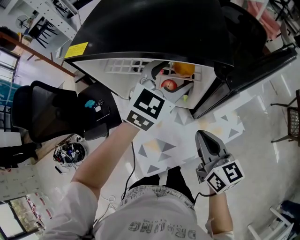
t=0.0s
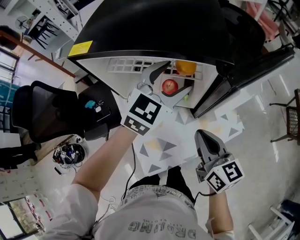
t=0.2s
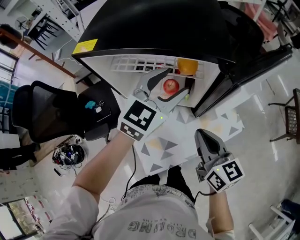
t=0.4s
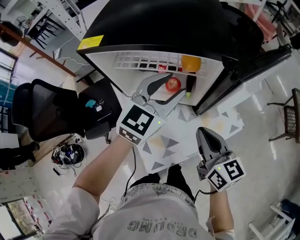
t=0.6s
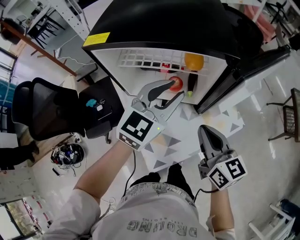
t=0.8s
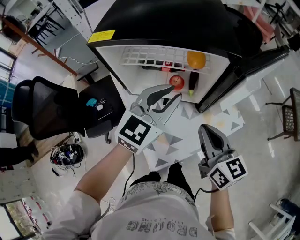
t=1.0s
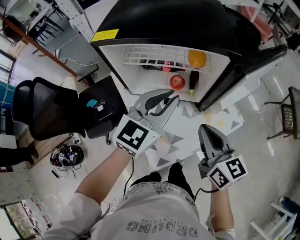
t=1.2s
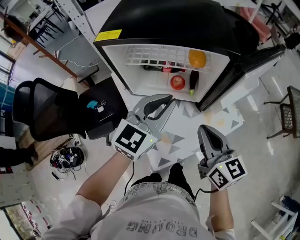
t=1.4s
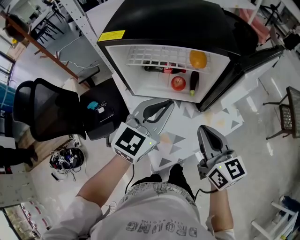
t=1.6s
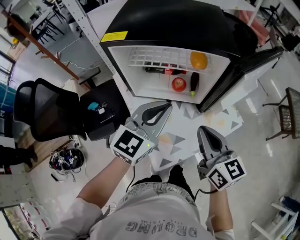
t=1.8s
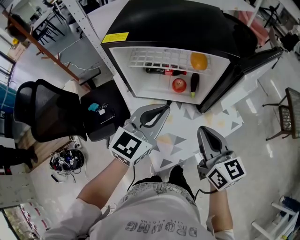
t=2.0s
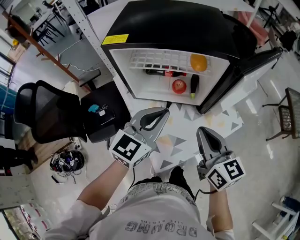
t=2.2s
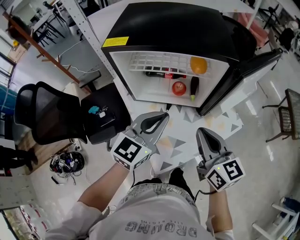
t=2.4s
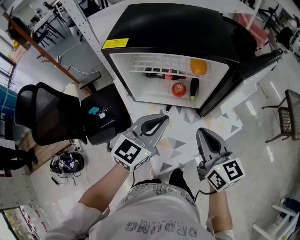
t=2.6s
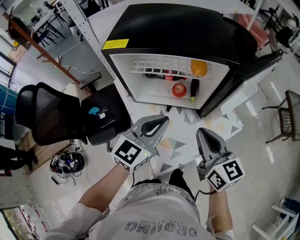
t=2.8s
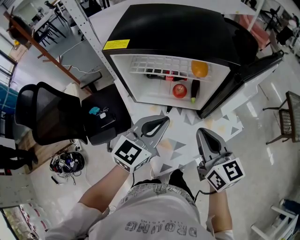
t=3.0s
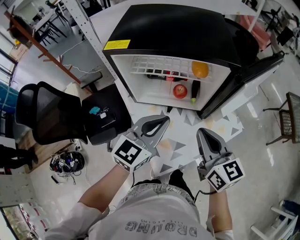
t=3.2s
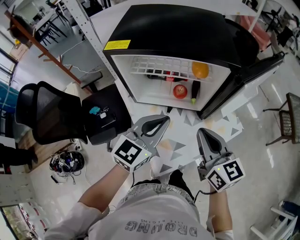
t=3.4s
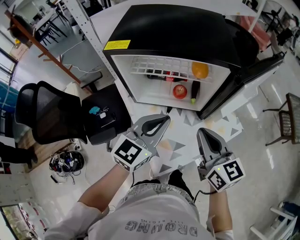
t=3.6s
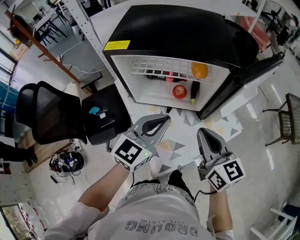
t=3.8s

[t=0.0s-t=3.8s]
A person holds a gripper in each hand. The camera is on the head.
t=0.0s to t=1.2s: The right gripper changes place by about 10 cm; the left gripper is displaced backward and to the left by about 15 cm, and closes up.
t=1.2s to t=2.6s: The left gripper shifts roughly 5 cm backward.
t=2.6s to t=3.8s: Both grippers stay about where they are.

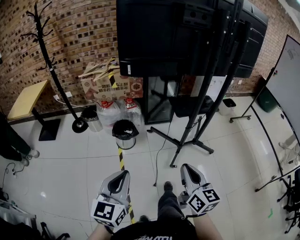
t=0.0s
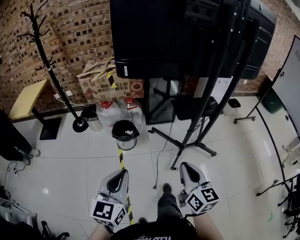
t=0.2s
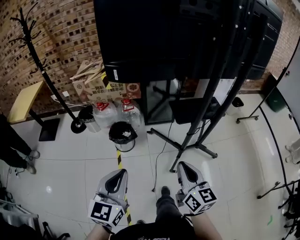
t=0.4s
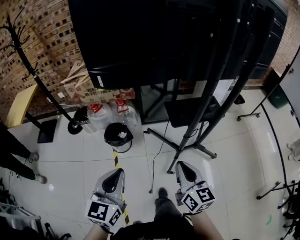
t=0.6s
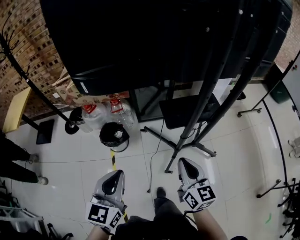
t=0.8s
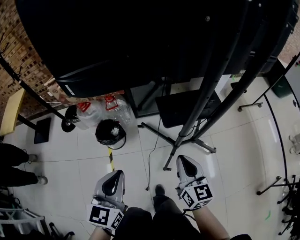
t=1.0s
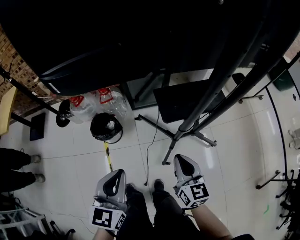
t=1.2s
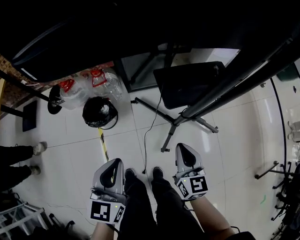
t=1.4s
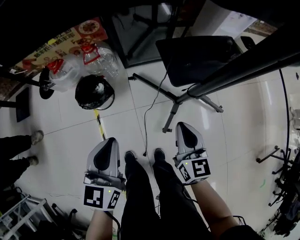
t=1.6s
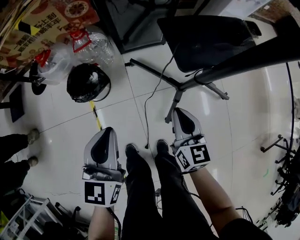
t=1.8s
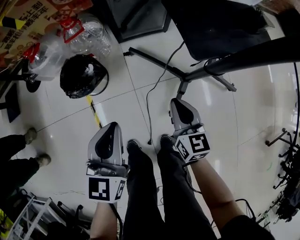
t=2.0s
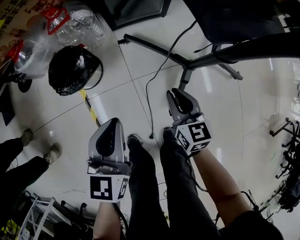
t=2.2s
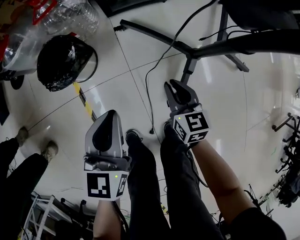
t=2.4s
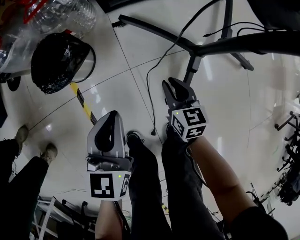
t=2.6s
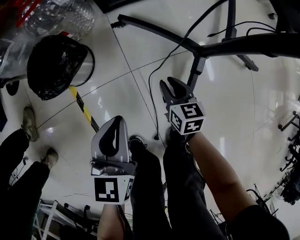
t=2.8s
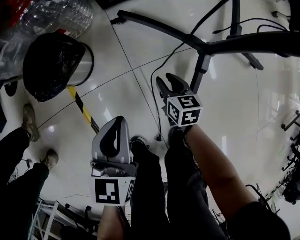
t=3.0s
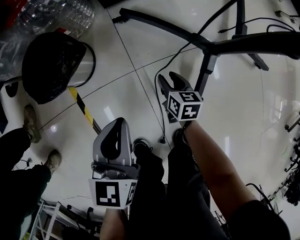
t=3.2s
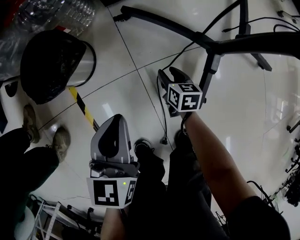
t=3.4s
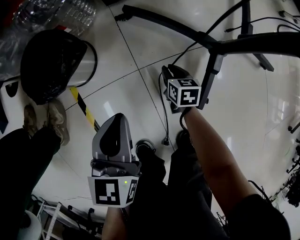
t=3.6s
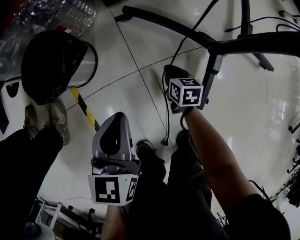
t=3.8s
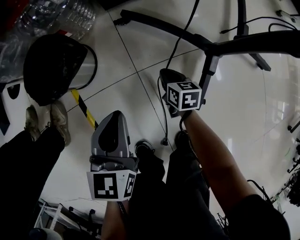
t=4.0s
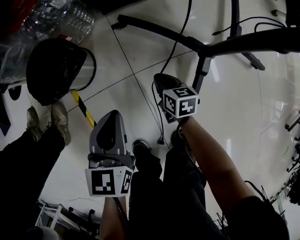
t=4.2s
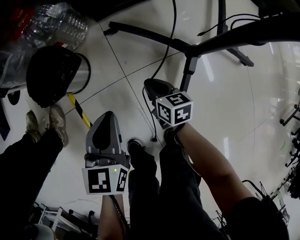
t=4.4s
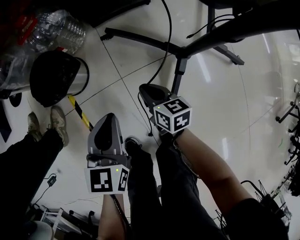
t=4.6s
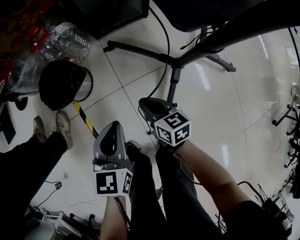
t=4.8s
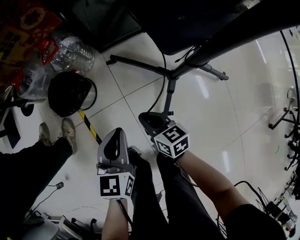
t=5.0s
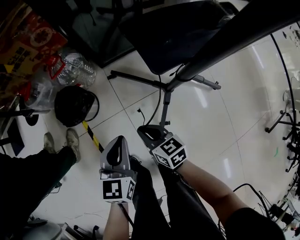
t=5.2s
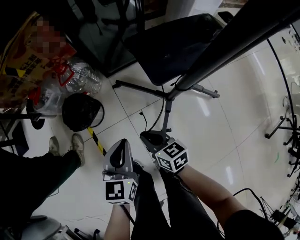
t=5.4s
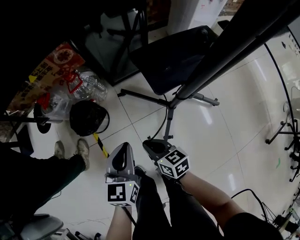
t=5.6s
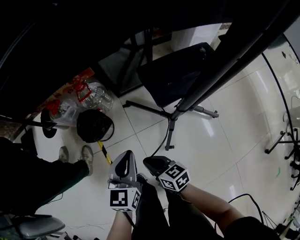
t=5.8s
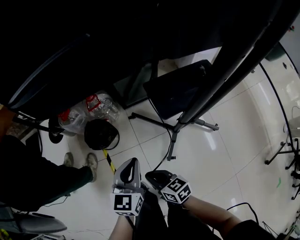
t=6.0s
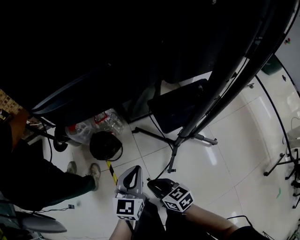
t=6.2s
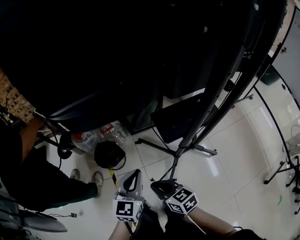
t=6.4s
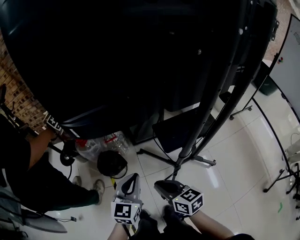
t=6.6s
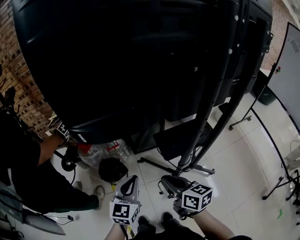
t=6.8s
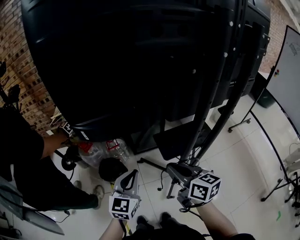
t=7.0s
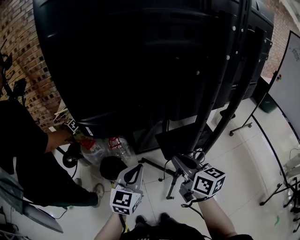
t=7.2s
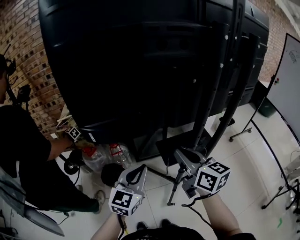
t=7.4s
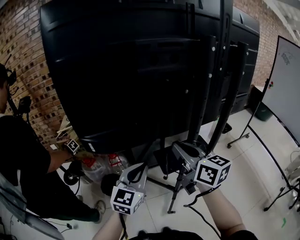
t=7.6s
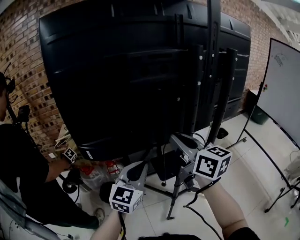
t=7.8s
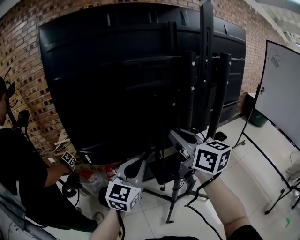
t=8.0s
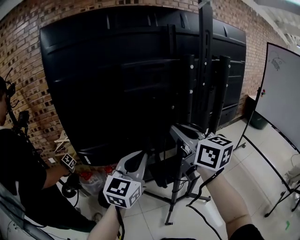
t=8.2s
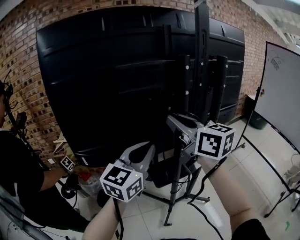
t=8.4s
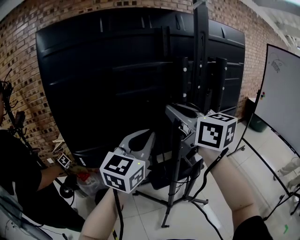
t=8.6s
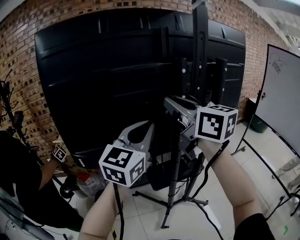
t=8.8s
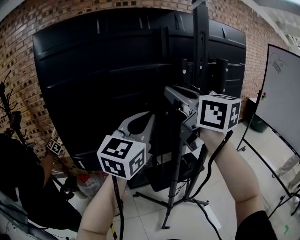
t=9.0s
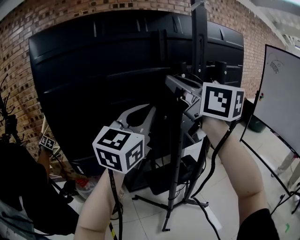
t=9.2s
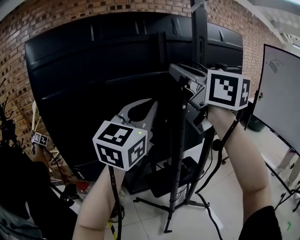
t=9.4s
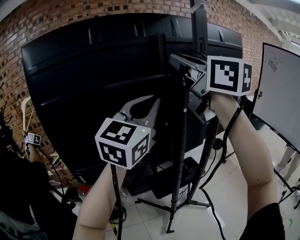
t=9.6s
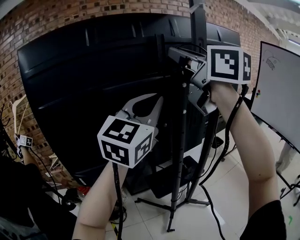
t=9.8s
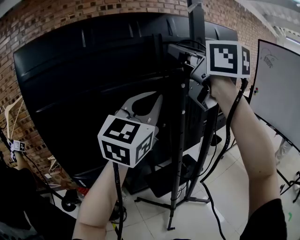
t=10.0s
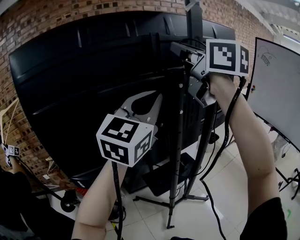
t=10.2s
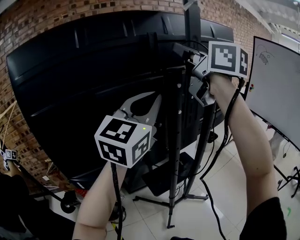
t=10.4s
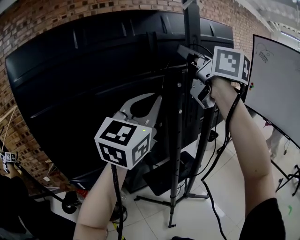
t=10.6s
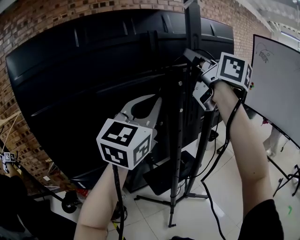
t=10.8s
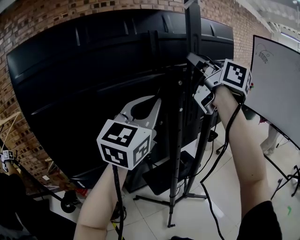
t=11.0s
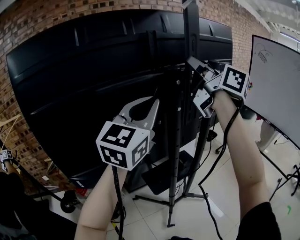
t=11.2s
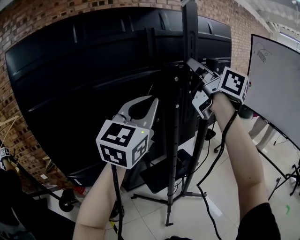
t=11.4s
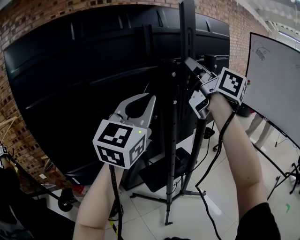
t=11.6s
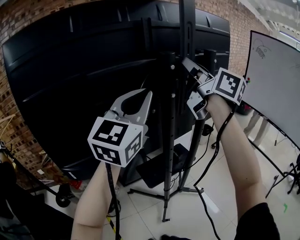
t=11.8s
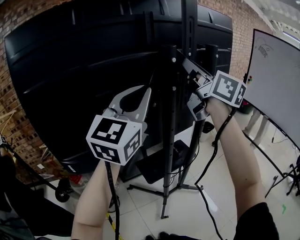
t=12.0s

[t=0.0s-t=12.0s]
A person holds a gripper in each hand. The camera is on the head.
t=0.0s to t=1.6s: Both grippers move forward and downward, about 40 cm.
t=1.6s to t=3.0s: The grippers both shift downward by some 40 cm. The right gripper swivels approximately 30 degrees, and opens.
t=3.0s to t=4.4s: The right gripper reaches about 10 cm downward, then returns, and closes its fingers.
t=4.4s to t=6.0s: Both grippers travel together upward, approximately 35 cm. The right gripper swivels approximately 20 degrees.
t=6.0s to t=7.6s: The left gripper travels upward by about 25 cm, and turns by some 30 degrees, while the right gripper goes approximately 50 cm upward, and turns by roughly 40 degrees.
t=7.6s to t=9.0s: The left gripper heads upward and to the right, covering some 30 cm; the right gripper shifts roughly 25 cm upward.
t=9.0s to t=10.4s: The left gripper moves upward, about 10 cm. The right gripper heads upward, forward and to the right, covering approximately 15 cm.
t=10.4s to t=12.0s: The right gripper shifts roughly 10 cm downward.

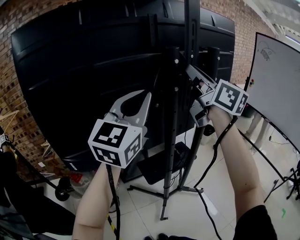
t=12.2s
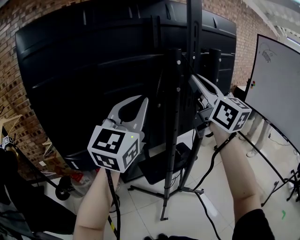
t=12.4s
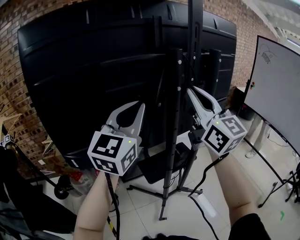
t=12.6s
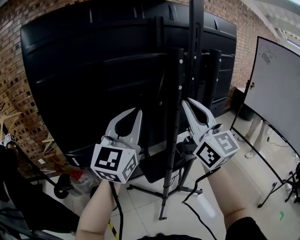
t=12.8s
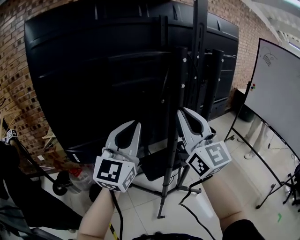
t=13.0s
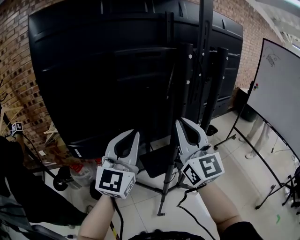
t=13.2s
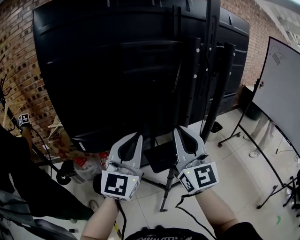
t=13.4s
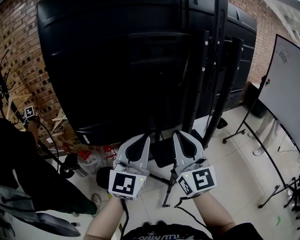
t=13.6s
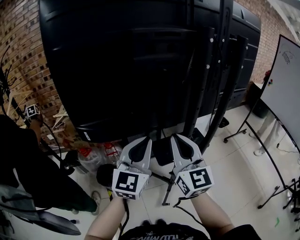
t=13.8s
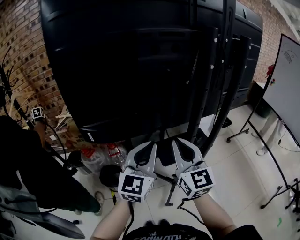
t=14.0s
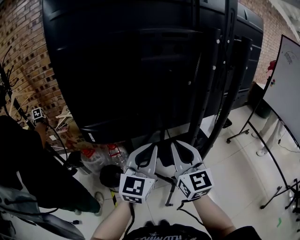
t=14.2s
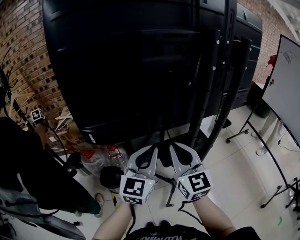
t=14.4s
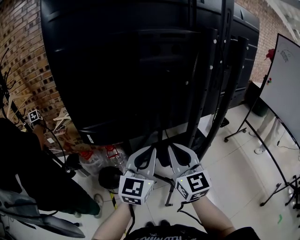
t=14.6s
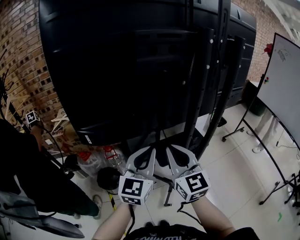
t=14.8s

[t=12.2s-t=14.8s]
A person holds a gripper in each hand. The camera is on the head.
t=12.2s to t=13.4s: The two grippers go some 20 cm downward, backward and to the left. The right gripper rotates some 30 degrees.
t=13.4s to t=14.8s: The left gripper travels downward by approximately 10 cm. Meanwhile the right gripper goes about 15 cm downward and to the left.

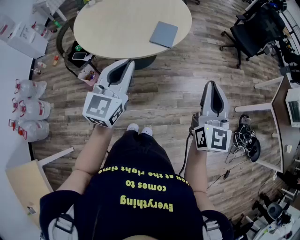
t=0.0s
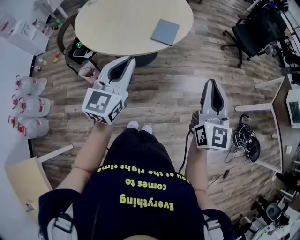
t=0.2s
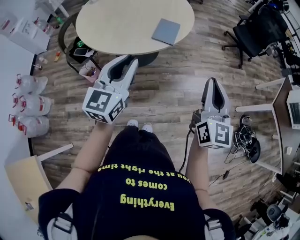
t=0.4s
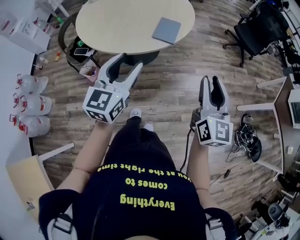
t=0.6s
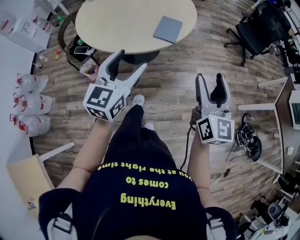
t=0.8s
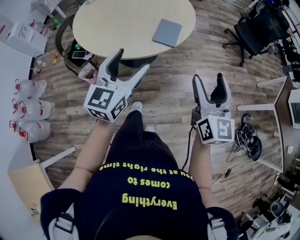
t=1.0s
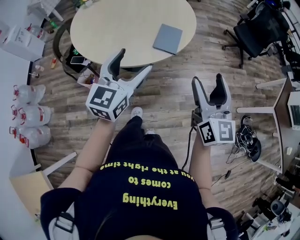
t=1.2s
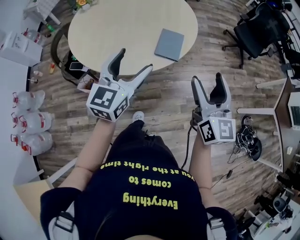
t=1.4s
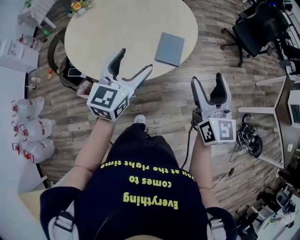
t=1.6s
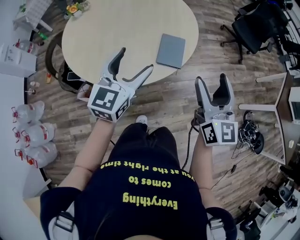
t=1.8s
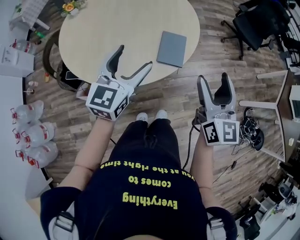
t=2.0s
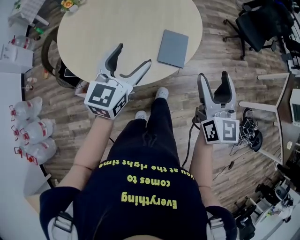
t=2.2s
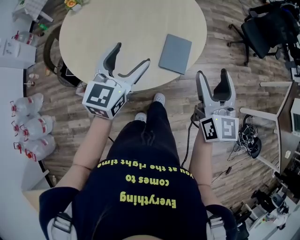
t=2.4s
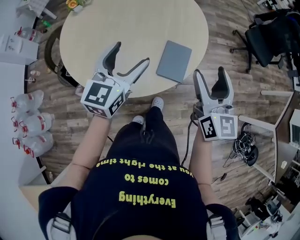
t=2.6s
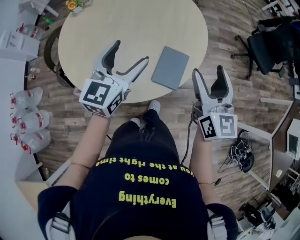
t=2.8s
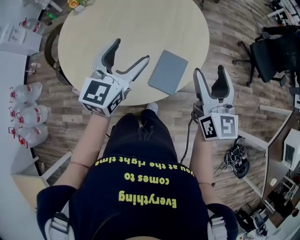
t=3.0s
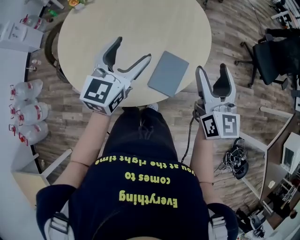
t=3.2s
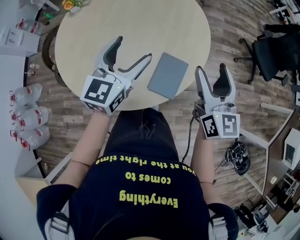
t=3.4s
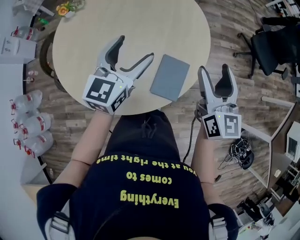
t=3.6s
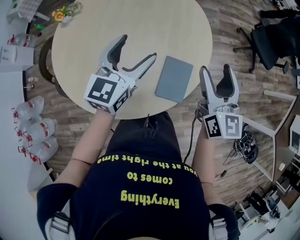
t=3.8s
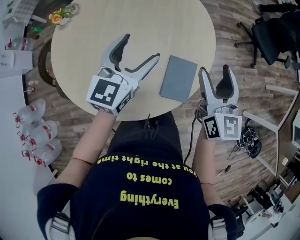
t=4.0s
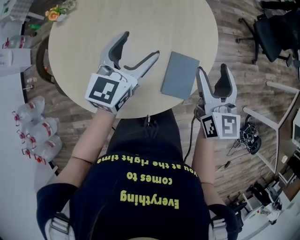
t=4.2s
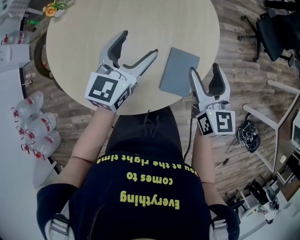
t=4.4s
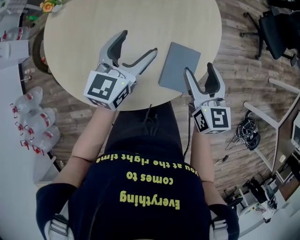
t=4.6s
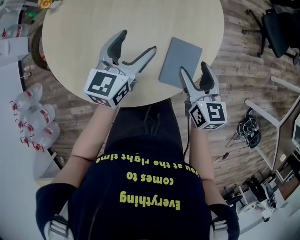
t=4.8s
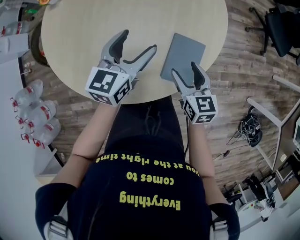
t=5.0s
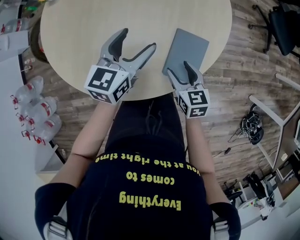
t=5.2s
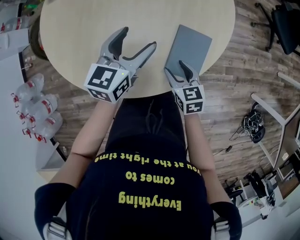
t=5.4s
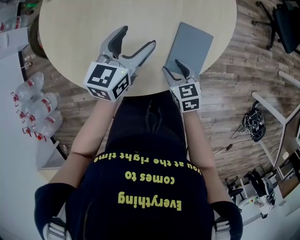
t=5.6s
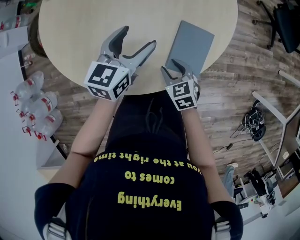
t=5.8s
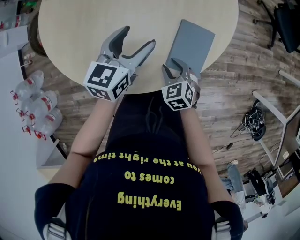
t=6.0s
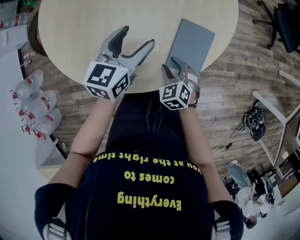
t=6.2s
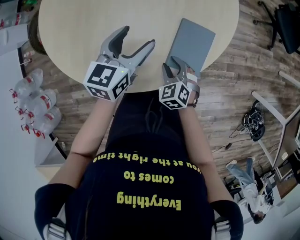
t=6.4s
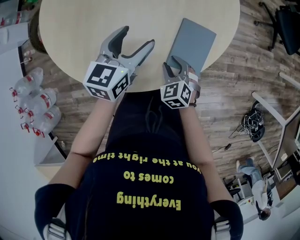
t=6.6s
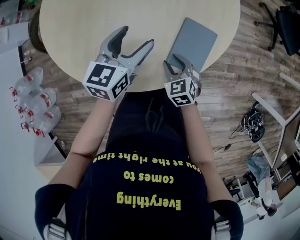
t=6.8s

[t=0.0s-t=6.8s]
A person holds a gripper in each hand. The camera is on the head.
t=0.0s to t=1.4s: The right gripper is displaced forward and to the left by some 15 cm, and opens its fingers; the left gripper moves forward, about 15 cm, and opens up.
t=1.4s to t=2.8s: The grippers both shift forward by about 25 cm.
t=2.8s to t=4.0s: Both grippers travel together forward, roughly 10 cm.
t=4.0s to t=5.4s: The left gripper goes some 15 cm downward, while the right gripper heads downward, covering some 30 cm, and tips its fingers downward by roughly 40 degrees.
t=5.4s to t=6.8s: The right gripper turns by approximately 20 degrees.
